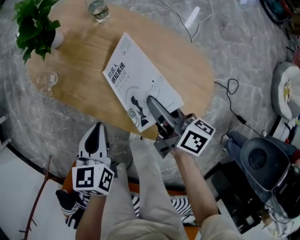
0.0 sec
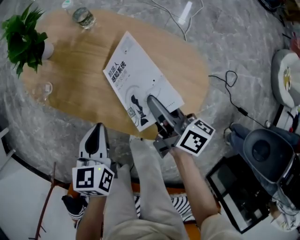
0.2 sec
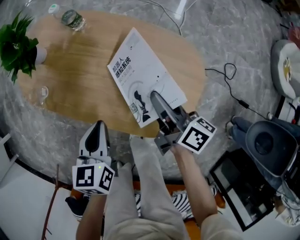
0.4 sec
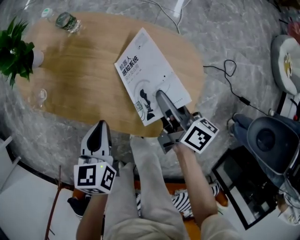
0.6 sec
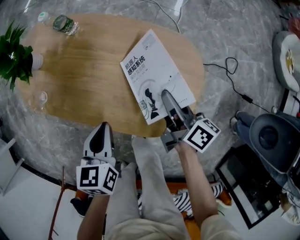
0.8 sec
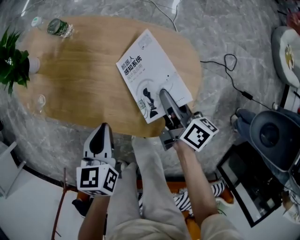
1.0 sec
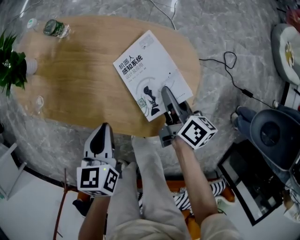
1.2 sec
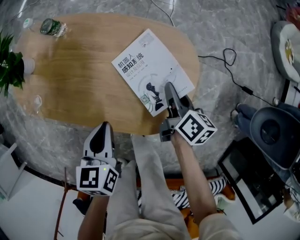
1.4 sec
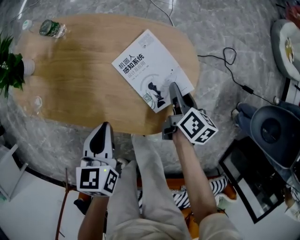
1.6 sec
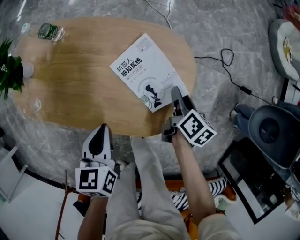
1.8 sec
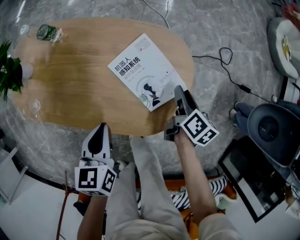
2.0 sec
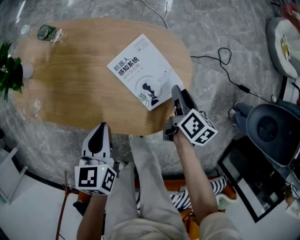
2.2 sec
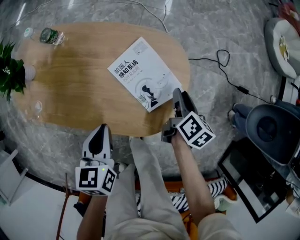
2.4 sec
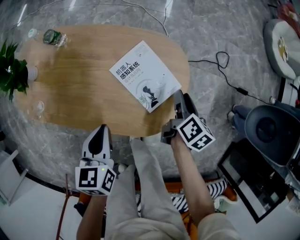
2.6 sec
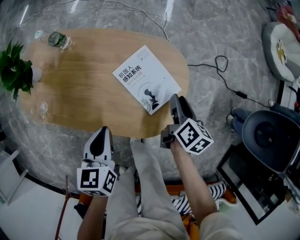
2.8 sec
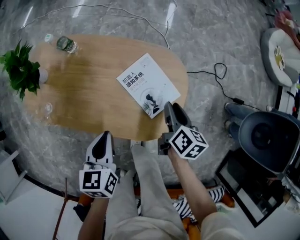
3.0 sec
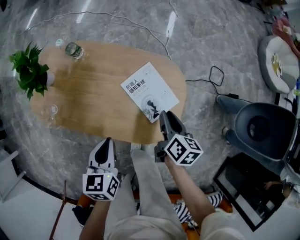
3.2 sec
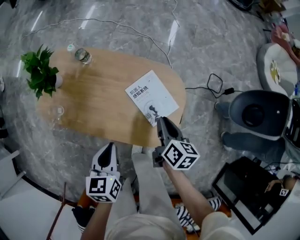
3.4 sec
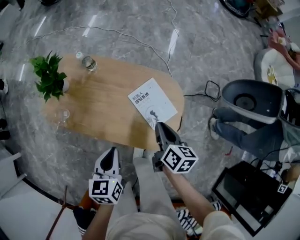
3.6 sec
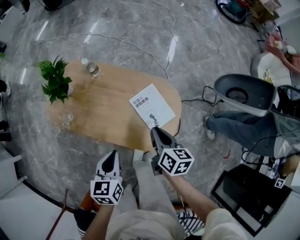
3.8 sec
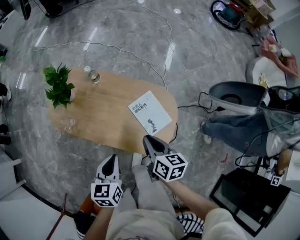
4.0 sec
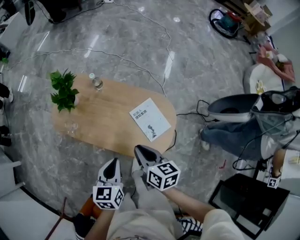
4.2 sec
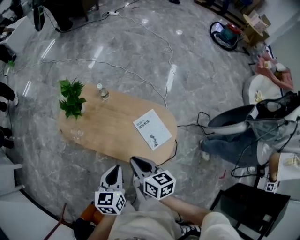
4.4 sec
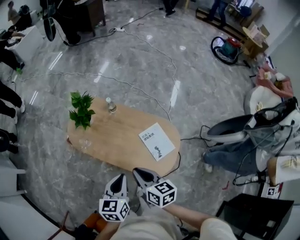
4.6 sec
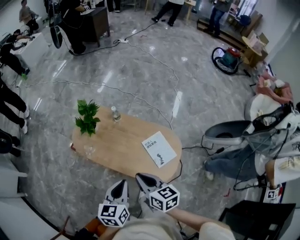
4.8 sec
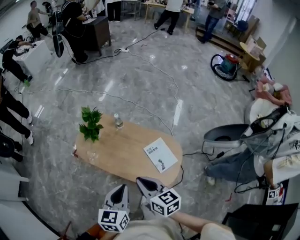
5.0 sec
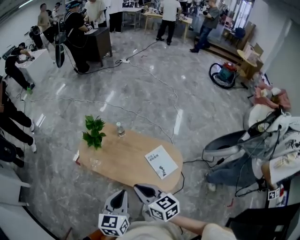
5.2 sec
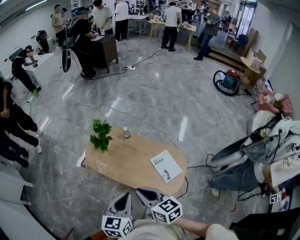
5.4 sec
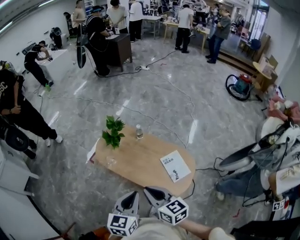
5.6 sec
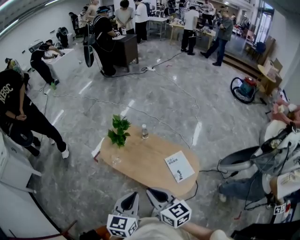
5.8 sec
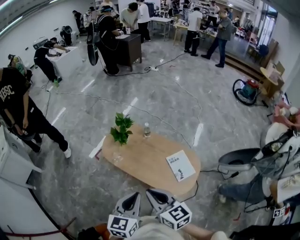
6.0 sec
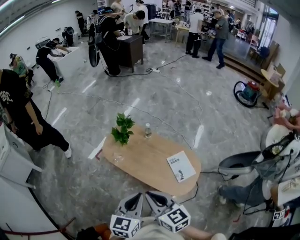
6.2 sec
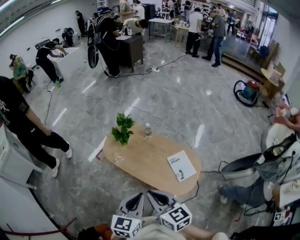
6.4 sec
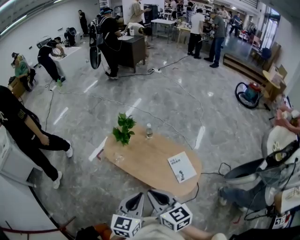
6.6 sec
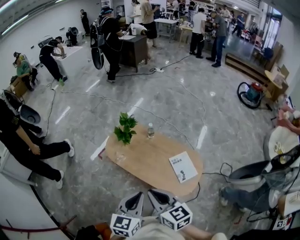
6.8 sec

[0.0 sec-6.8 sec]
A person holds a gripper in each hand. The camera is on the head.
0.0 sec to 1.4 sec: The left gripper moves about 10 cm, while the right gripper changes place by about 20 cm, and swivels approximately 40 degrees.
1.4 sec to 2.8 sec: The right gripper changes place by some 5 cm.
2.8 sec to 4.0 sec: The left gripper is displaced upward and backward by roughly 20 cm. The right gripper travels upward and to the left by about 30 cm, turns by about 30 degrees, and closes its fingers.
4.0 sec to 5.4 sec: The left gripper shifts approximately 25 cm upward and backward, while the right gripper goes some 30 cm upward, to the left and backward, and turns by roughly 40 degrees.
5.4 sec to 6.8 sec: The two grippers go some 5 cm backward.

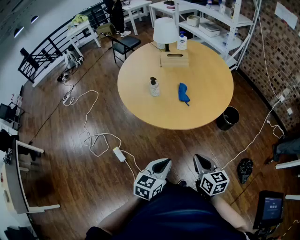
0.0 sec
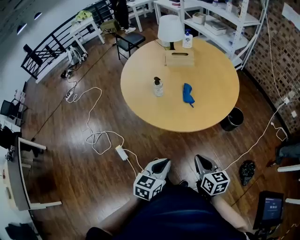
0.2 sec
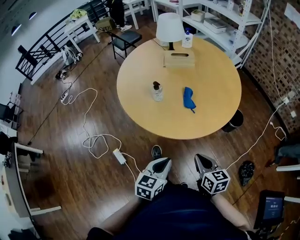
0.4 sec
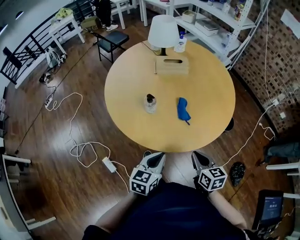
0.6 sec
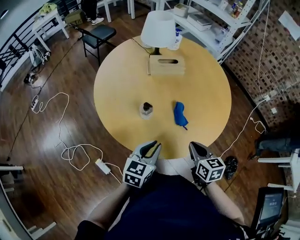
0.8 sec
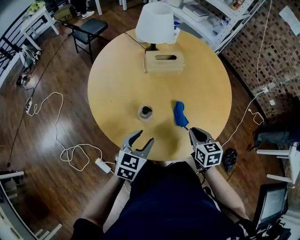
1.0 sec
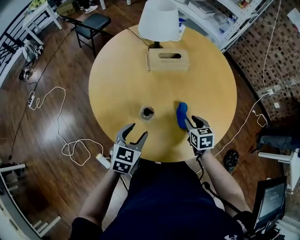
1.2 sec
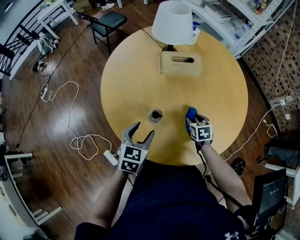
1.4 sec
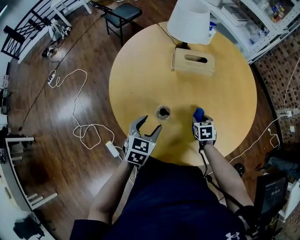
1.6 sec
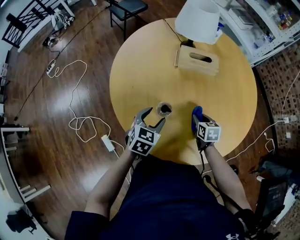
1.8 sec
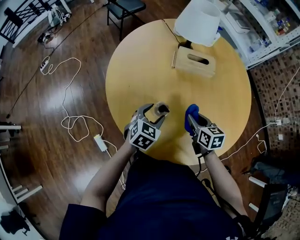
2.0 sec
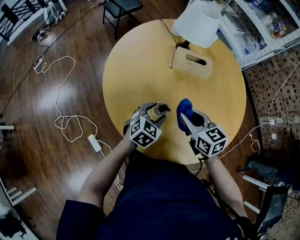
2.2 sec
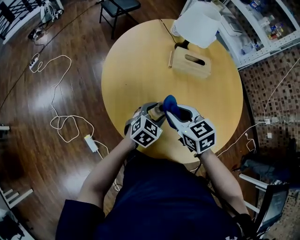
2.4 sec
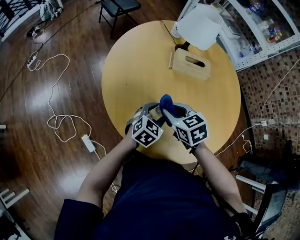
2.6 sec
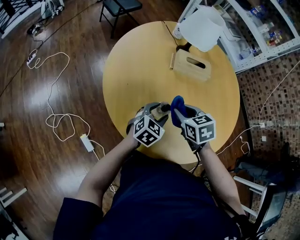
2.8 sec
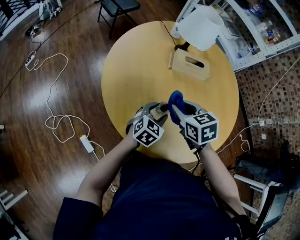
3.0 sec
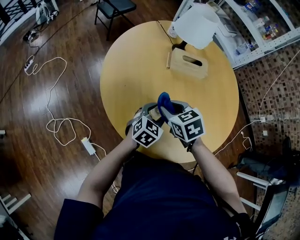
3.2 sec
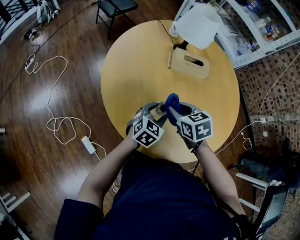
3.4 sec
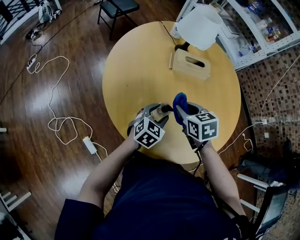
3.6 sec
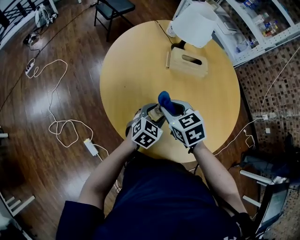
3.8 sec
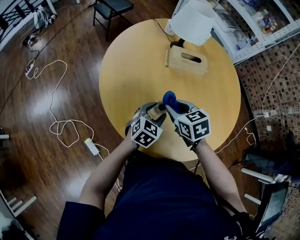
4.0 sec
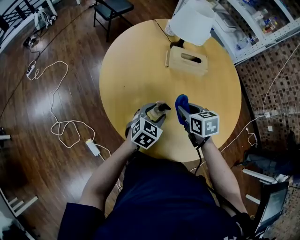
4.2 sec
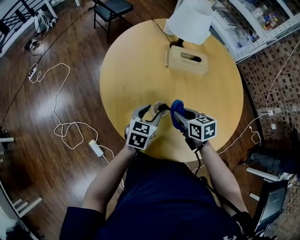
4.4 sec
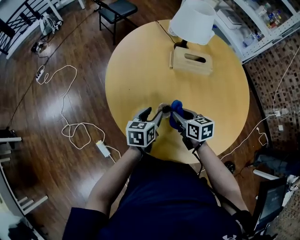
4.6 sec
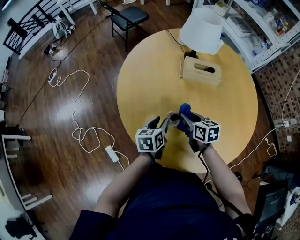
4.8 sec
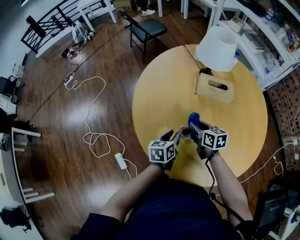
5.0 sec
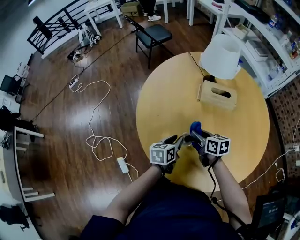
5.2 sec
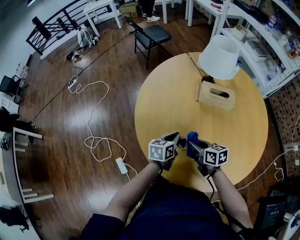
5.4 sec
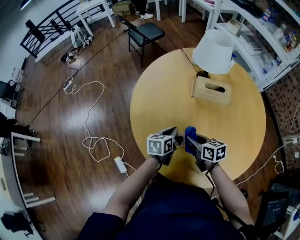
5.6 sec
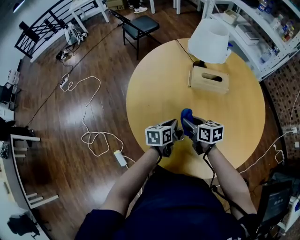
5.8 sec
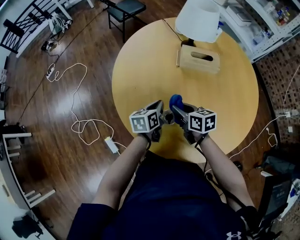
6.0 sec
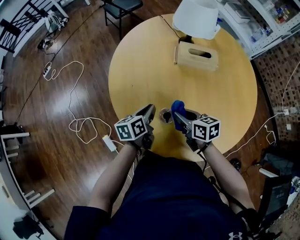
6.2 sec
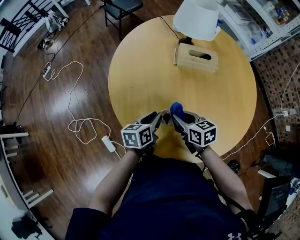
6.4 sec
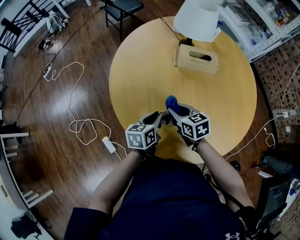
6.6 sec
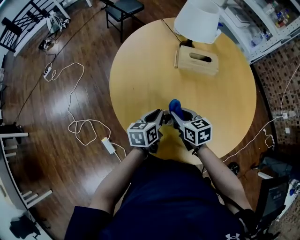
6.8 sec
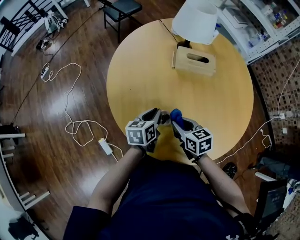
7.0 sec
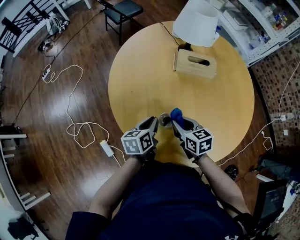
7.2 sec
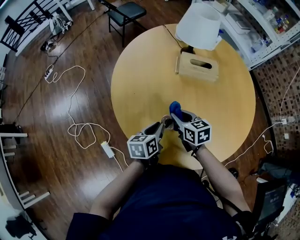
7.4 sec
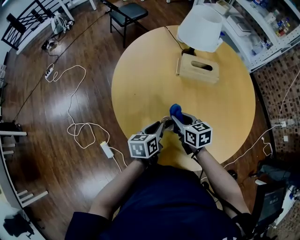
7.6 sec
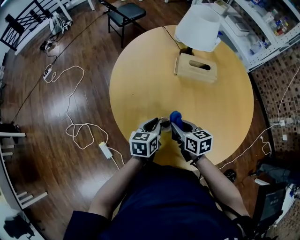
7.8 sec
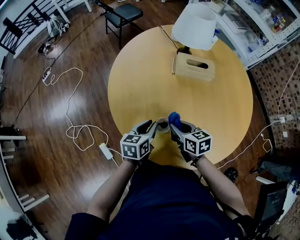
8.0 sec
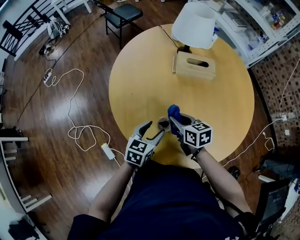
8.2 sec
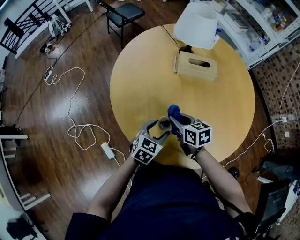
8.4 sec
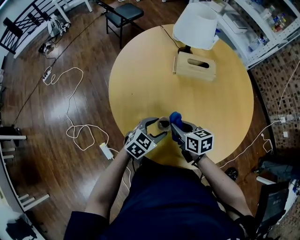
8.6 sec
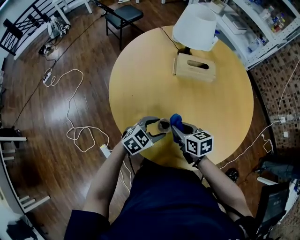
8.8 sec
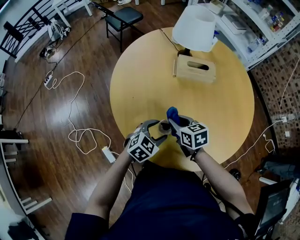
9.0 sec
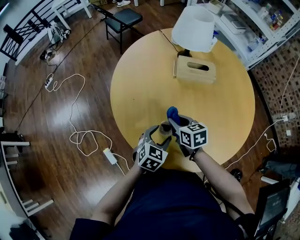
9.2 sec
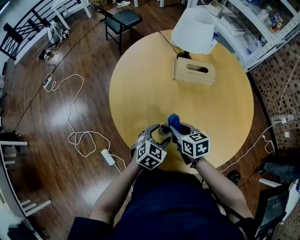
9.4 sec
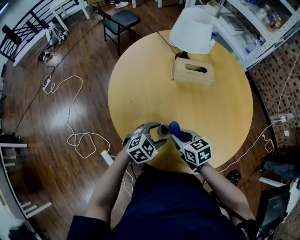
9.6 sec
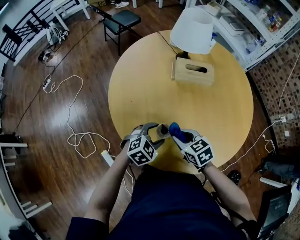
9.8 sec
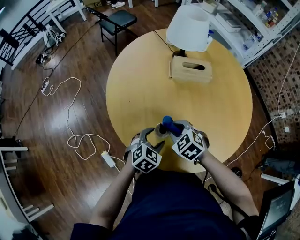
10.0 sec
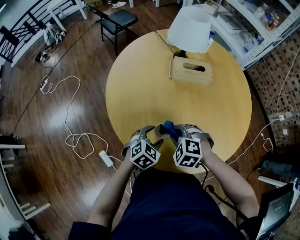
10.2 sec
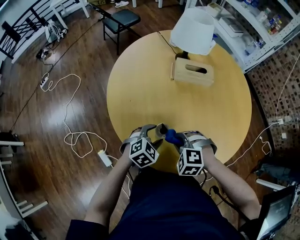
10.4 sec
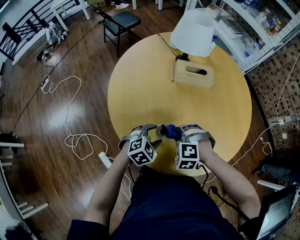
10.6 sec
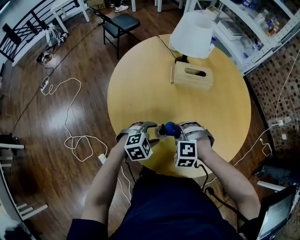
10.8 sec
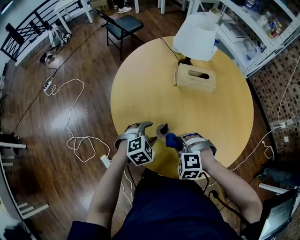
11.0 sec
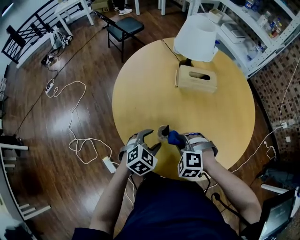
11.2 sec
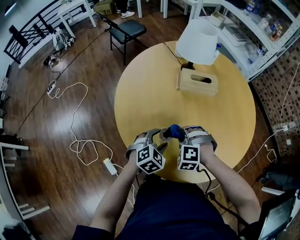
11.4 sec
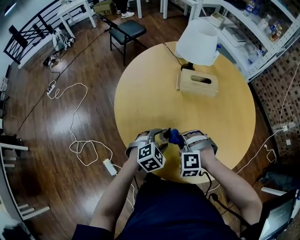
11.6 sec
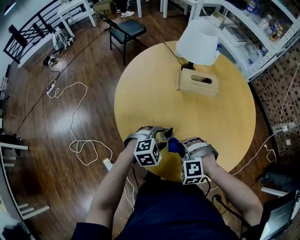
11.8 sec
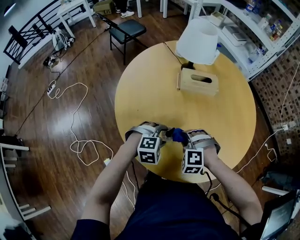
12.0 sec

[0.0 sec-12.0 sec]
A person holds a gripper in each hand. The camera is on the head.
0.0 sec to 1.6 sec: Both grippers are carried forward, approximately 40 cm. The right gripper is displaced downward by about 20 cm, tilts its fingers some 40 degrees downward, and opens up; the left gripper opens its fingers.
1.6 sec to 3.0 sec: The right gripper heads upward and to the left, covering approximately 25 cm, and turns by approximately 20 degrees; the left gripper changes place by some 5 cm.
3.0 sec to 4.4 sec: The right gripper shifts roughly 10 cm downward.
4.4 sec to 6.0 sec: The right gripper swings forward and backward, about 5 cm each way, with 2 reversals, while the left gripper ends up about 5 cm from where it was, turns by some 30 degrees, and closes its fingers.
6.0 sec to 7.6 sec: The left gripper moves backward, approximately 5 cm.
7.6 sec to 9.0 sec: The left gripper rolls clockwise, seen from behind, by some 60 degrees, and opens its fingers.
9.0 sec to 10.4 sec: The right gripper shifts some 10 cm backward, and twists roughly 70 degrees counterclockwise, seen from behind.
10.4 sec to 12.0 sec: The left gripper changes its angle by approximately 30 degrees. Meanwhile the right gripper moves forward and backward over approximately 5 cm, changing direction 4 times.

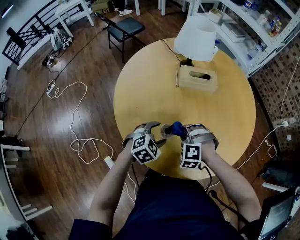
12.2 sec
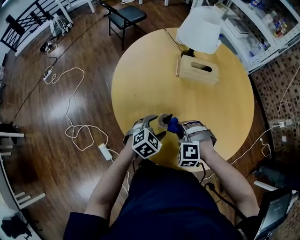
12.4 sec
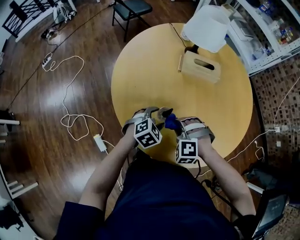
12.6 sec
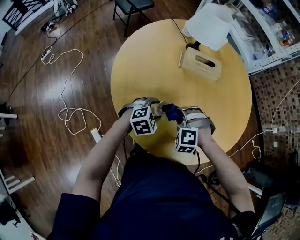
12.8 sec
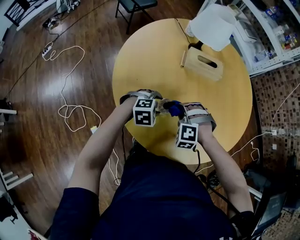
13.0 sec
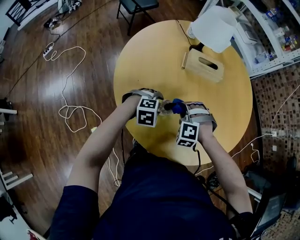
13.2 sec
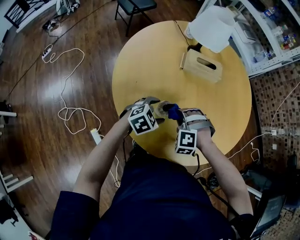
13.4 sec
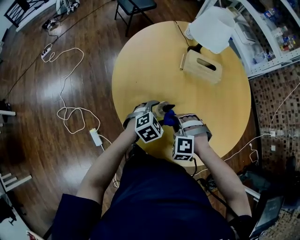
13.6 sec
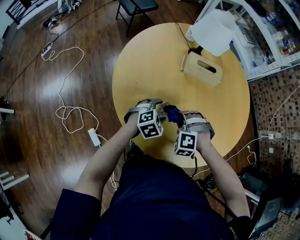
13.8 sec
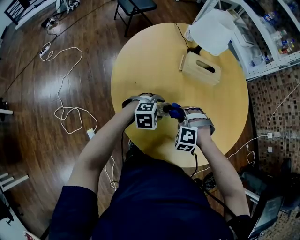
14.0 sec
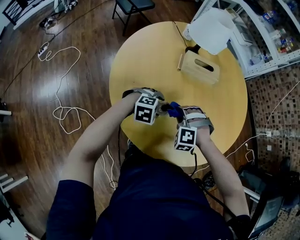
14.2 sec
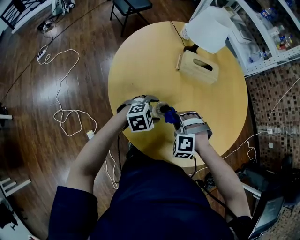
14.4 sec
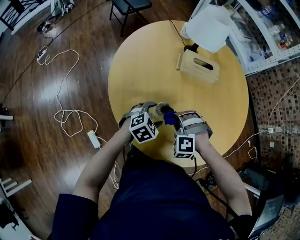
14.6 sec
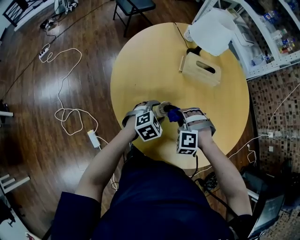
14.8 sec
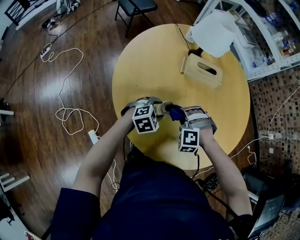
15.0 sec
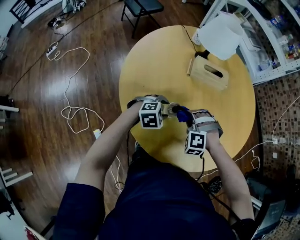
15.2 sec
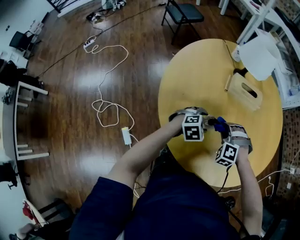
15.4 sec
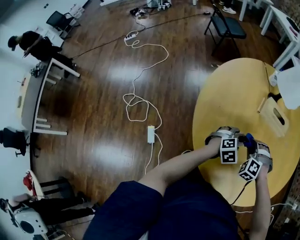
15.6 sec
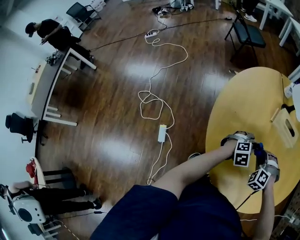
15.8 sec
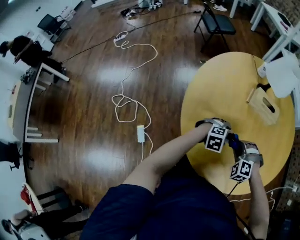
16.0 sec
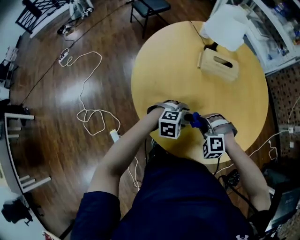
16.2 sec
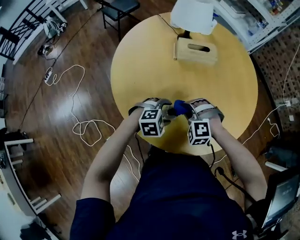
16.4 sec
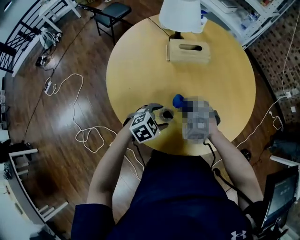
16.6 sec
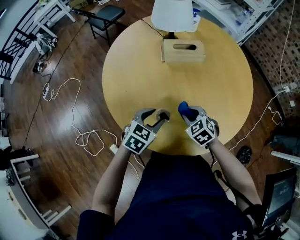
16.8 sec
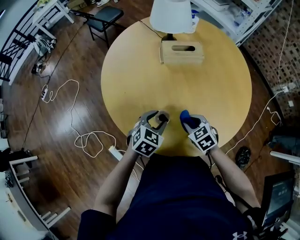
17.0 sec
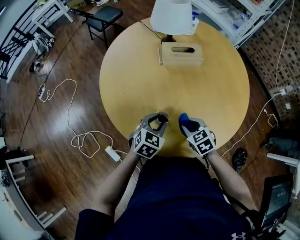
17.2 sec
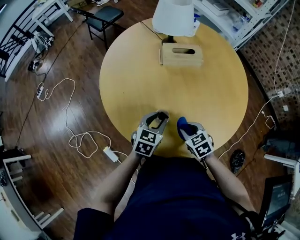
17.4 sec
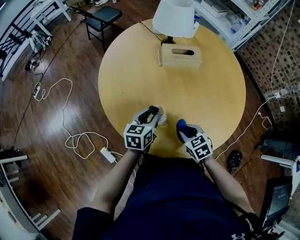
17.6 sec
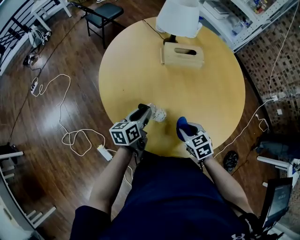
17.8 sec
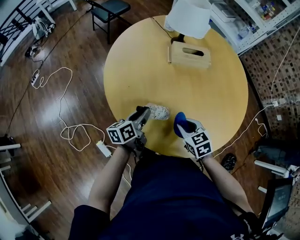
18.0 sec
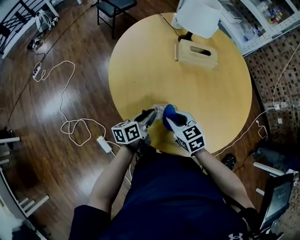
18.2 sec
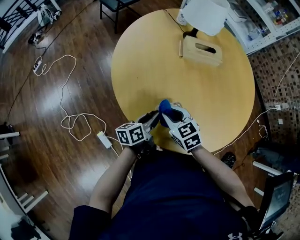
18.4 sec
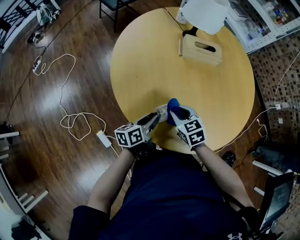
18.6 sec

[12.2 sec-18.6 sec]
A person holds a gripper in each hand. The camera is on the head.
12.2 sec to 13.8 sec: The right gripper goes forward and backward, roughly 5 cm each way, reversing 2 times.
15.4 sec to 17.0 sec: The right gripper heads to the right and backward, covering roughly 10 cm, and twists about 70 degrees clockwise, seen from behind; the left gripper changes place by about 5 cm.
17.0 sec to 18.6 sec: Both grippers travel together to the left, approximately 10 cm. The left gripper rolls counterclockwise, seen from behind, by some 70 degrees.
